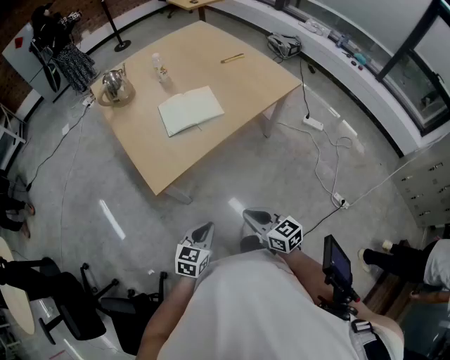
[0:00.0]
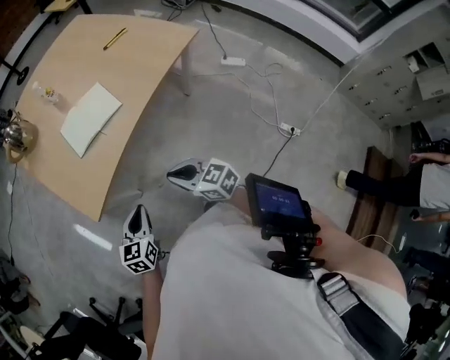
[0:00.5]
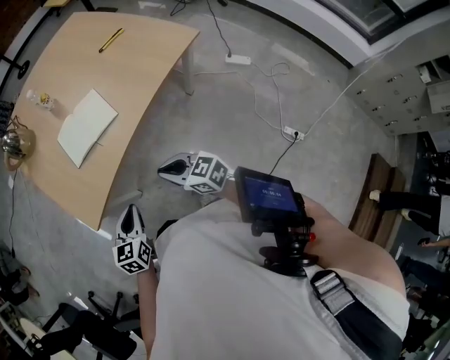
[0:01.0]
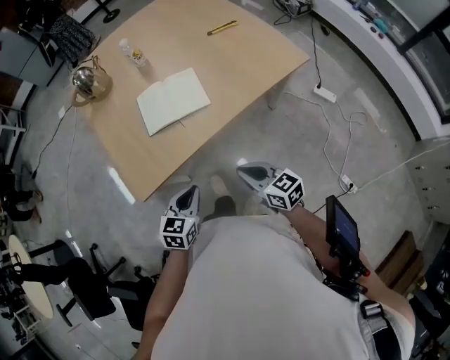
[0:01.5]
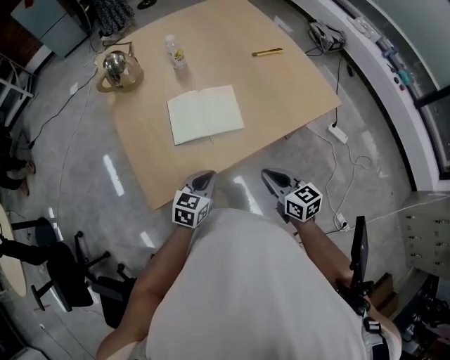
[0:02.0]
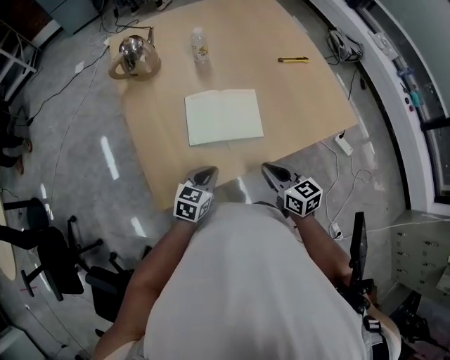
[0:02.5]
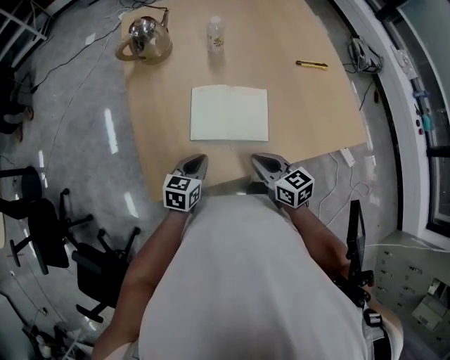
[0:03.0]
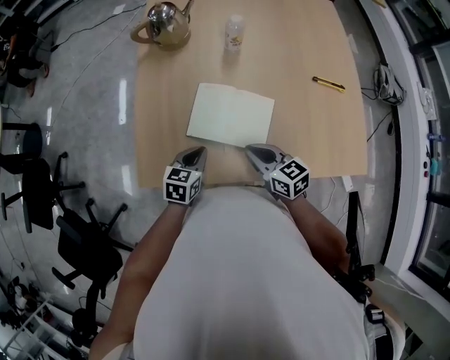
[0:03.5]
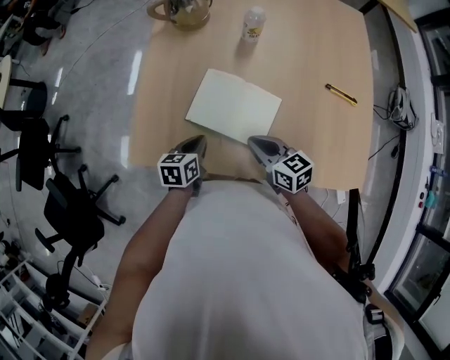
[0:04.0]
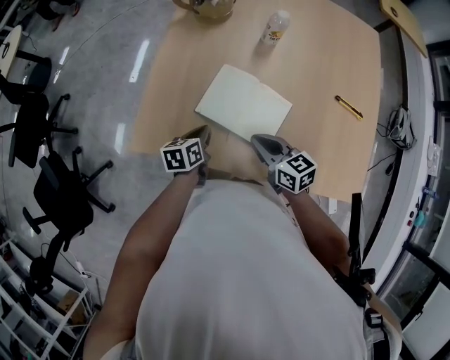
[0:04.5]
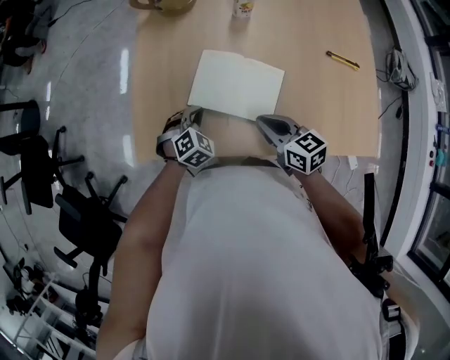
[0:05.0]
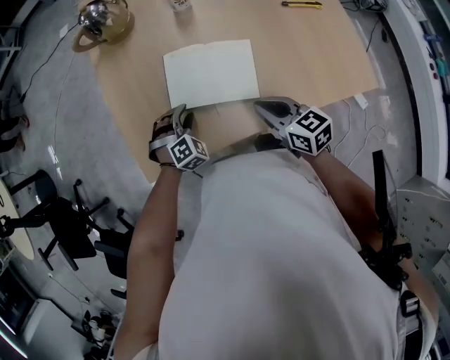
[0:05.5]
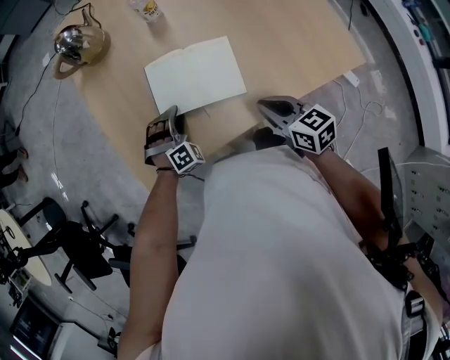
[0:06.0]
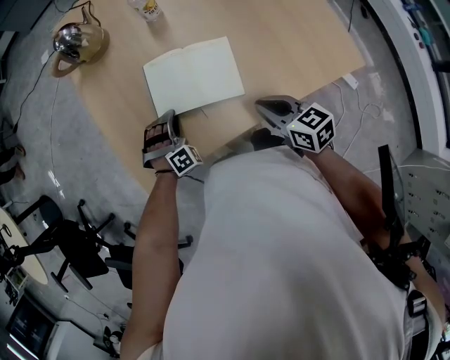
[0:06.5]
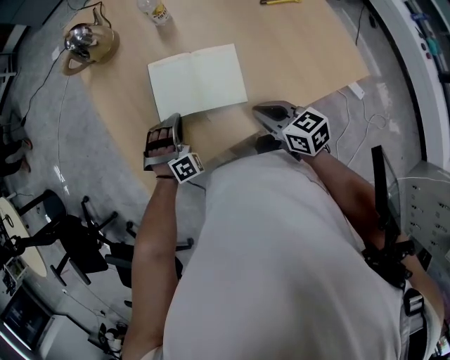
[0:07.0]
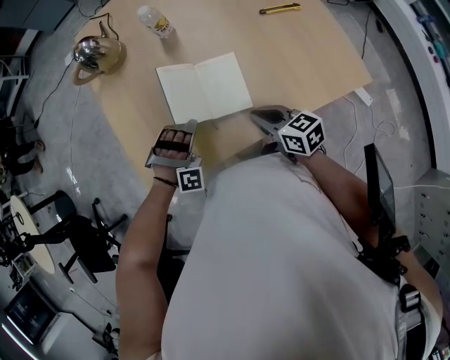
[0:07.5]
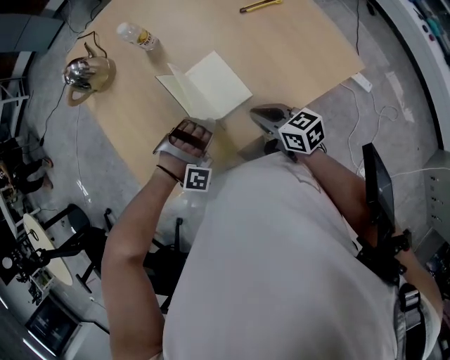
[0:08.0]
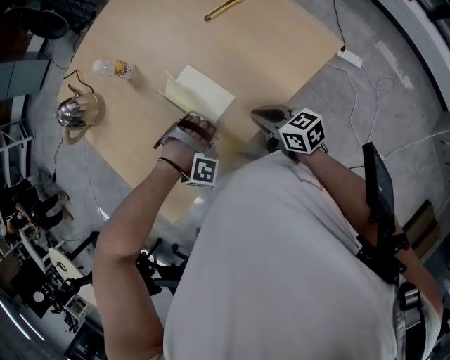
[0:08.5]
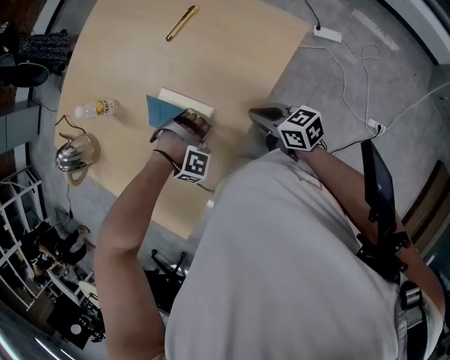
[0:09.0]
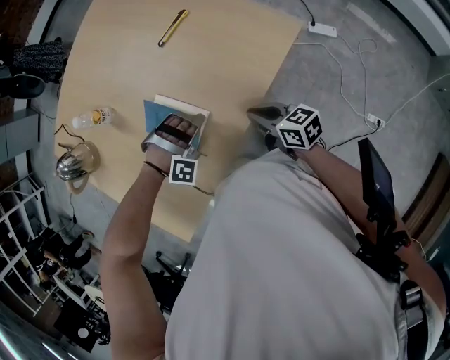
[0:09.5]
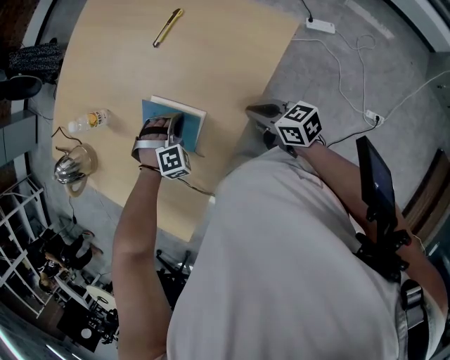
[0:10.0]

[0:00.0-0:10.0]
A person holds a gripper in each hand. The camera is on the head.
0:00.0 to 0:02.0: Both grippers move forward, about 30 cm.
0:02.0 to 0:04.0: The left gripper changes place by roughly 15 cm, and rotates around the line of its fingers by some 40 degrees, counterclockwise from behind; the right gripper ends up roughly 20 cm from where it was, and rotates some 40 degrees.
0:04.0 to 0:06.0: The left gripper is displaced downward by roughly 5 cm, rolls clockwise, seen from behind, by about 110 degrees, and opens; the right gripper heads backward, covering some 10 cm, and turns by some 30 degrees.
0:06.0 to 0:08.0: The left gripper is displaced to the right, upward and backward by some 15 cm, rotates around the line of its fingers by roughly 60 degrees, clockwise from behind, and closes.
0:08.0 to 0:10.0: The right gripper shifts roughly 15 cm to the right, and changes its angle by some 20 degrees; the left gripper travels forward, to the right and downward by some 15 cm, swivels about 30 degrees, and opens and closes again.

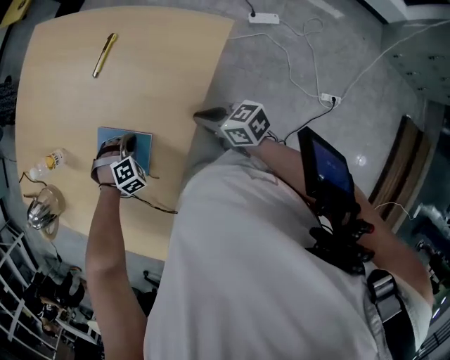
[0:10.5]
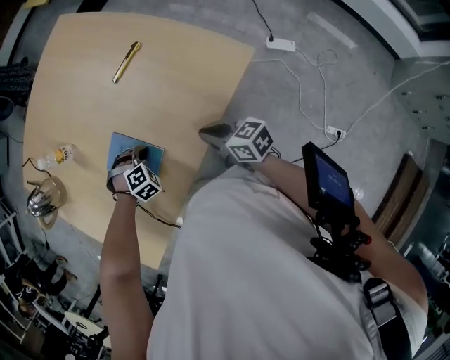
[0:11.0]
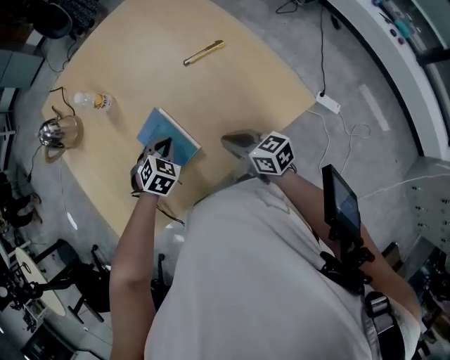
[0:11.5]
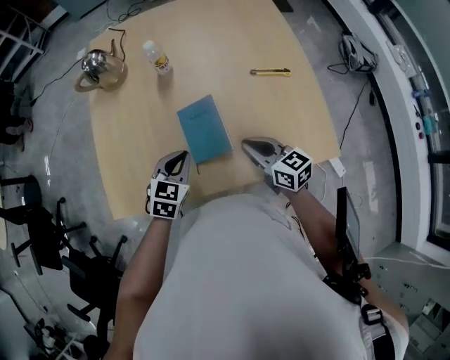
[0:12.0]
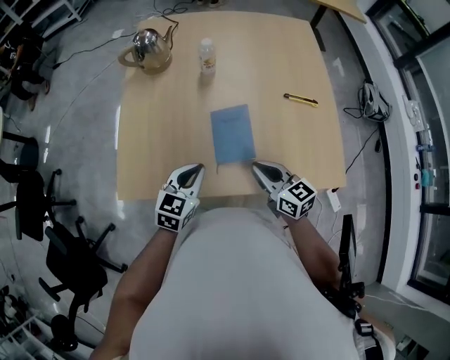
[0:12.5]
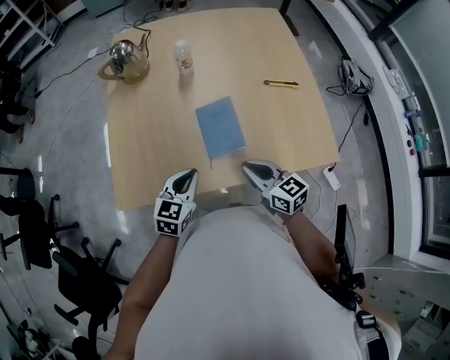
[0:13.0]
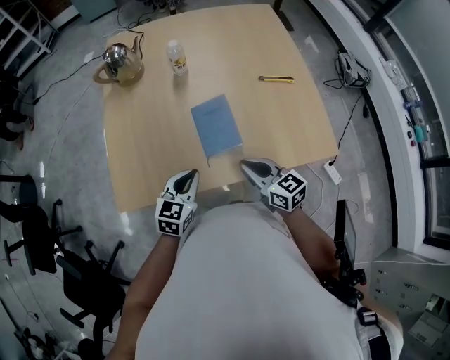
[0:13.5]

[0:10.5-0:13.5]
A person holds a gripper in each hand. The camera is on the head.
0:10.5 to 0:12.0: The left gripper travels upward, to the left and backward by roughly 15 cm, and rotates around the line of its fingers by about 100 degrees, counterclockwise from behind, while the right gripper shifts about 15 cm forward, upward and to the left, and turns by some 40 degrees.
0:12.0 to 0:13.5: The right gripper travels to the left and backward by about 10 cm; the left gripper travels backward by approximately 5 cm.

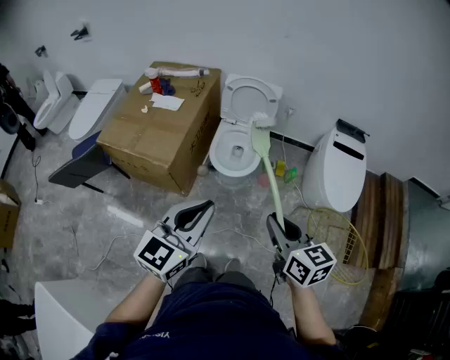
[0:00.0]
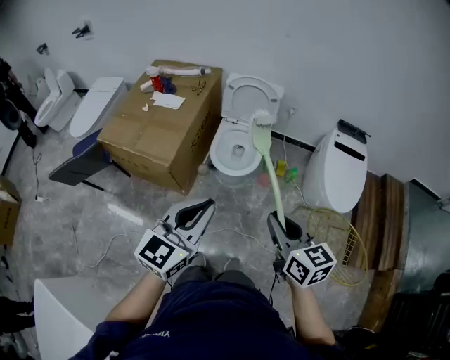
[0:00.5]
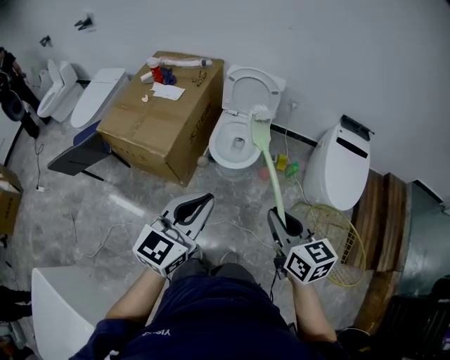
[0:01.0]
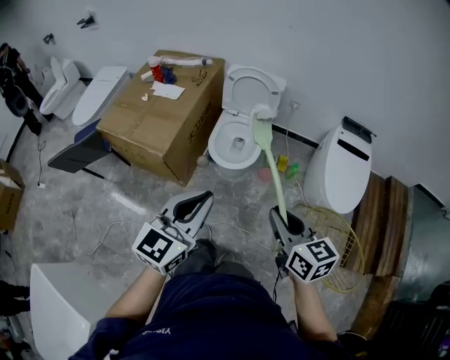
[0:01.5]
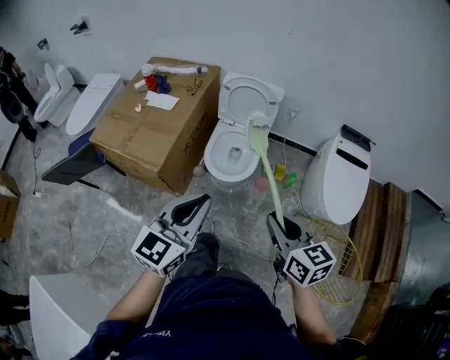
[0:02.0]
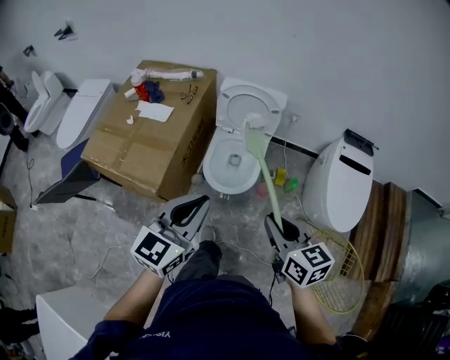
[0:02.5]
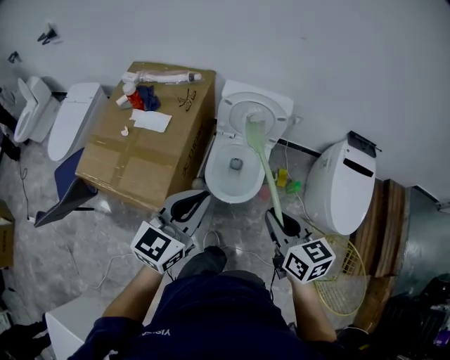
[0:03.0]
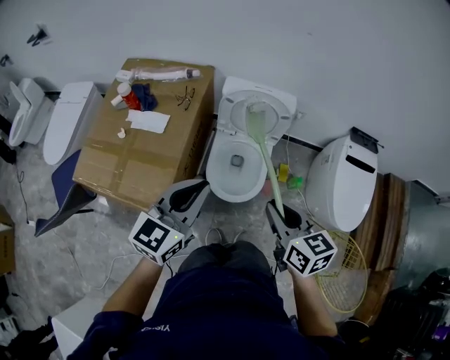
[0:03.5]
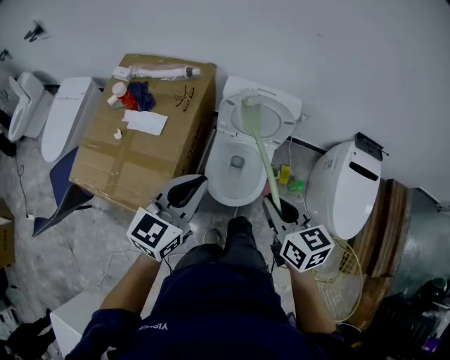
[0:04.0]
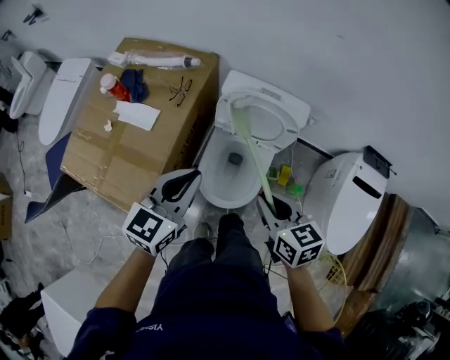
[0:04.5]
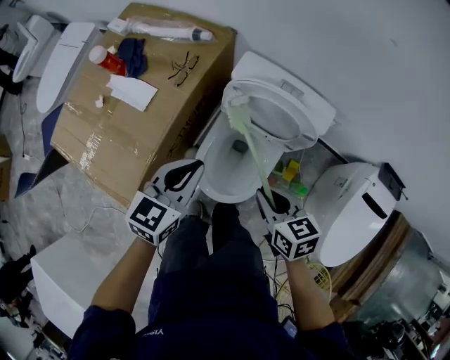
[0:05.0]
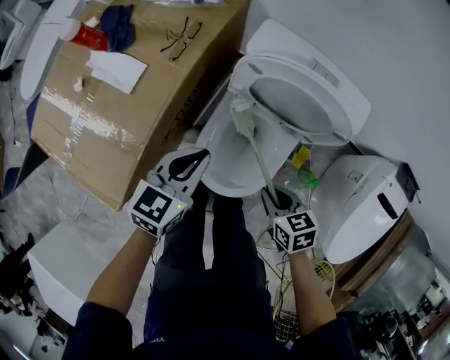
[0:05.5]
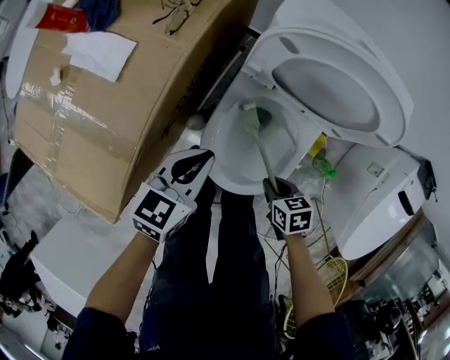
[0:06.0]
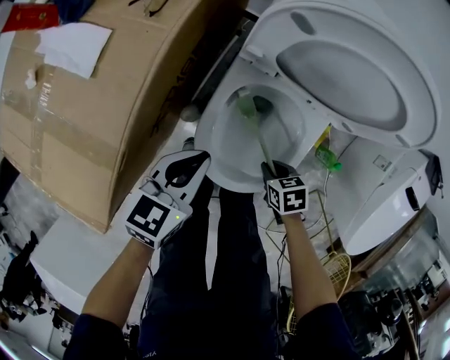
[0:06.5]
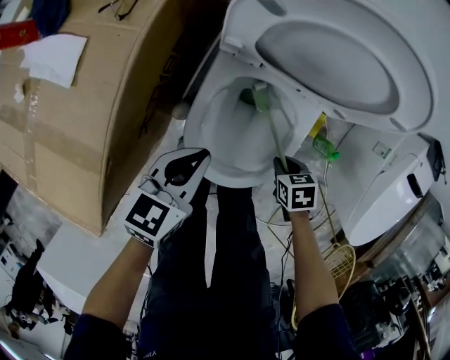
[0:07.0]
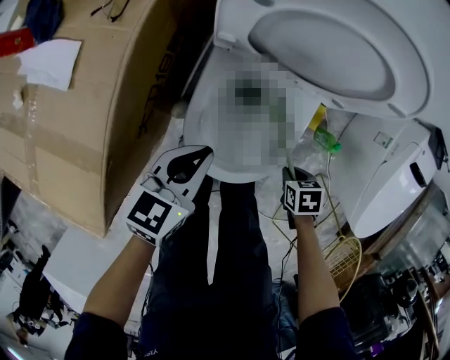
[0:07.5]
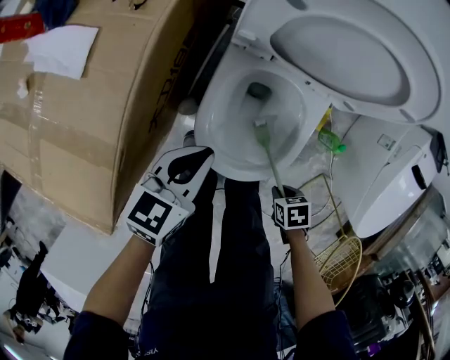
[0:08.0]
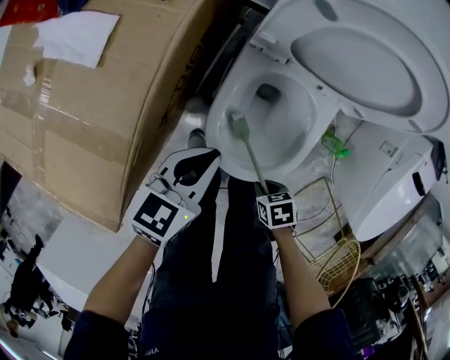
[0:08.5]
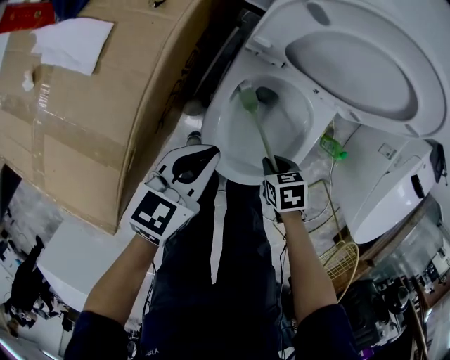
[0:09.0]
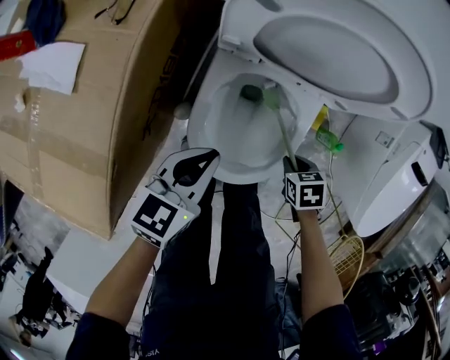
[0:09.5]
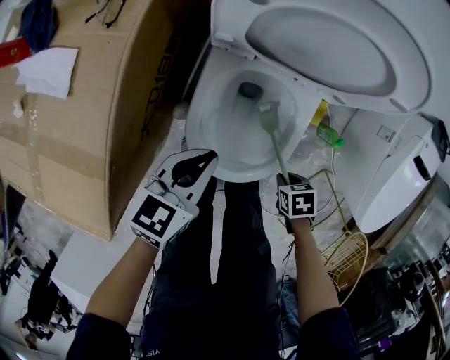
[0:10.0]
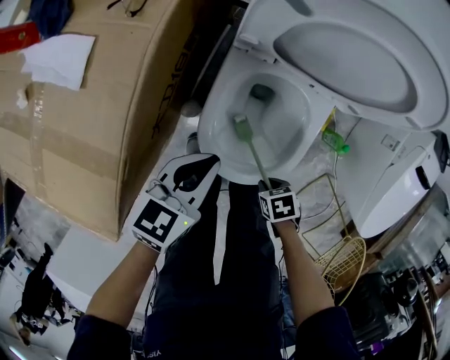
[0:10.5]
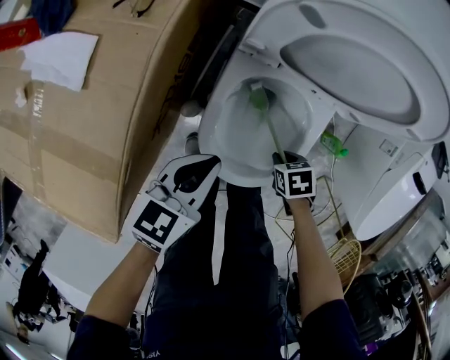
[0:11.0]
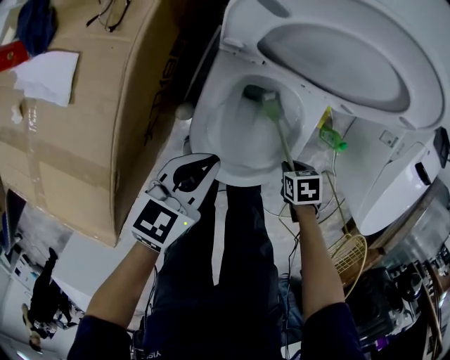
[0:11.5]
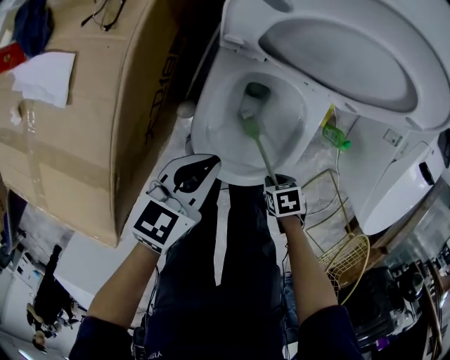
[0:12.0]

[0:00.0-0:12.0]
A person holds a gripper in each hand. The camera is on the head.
0:00.0 to 0:02.0: The grippers both shift forward by about 10 cm.
0:02.0 to 0:04.0: The two grippers go about 30 cm forward.
0:04.0 to 0:06.0: The two grippers go approximately 40 cm downward. The right gripper tips its fingers downward by roughly 30 degrees, while the left gripper swivels approximately 30 degrees.
0:06.0 to 0:08.0: The left gripper changes place by some 5 cm. Meanwhile the right gripper moves some 15 cm, and changes its angle by approximately 20 degrees.

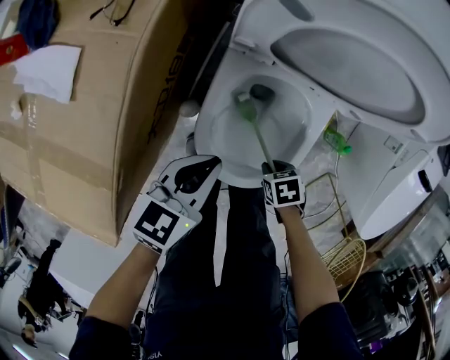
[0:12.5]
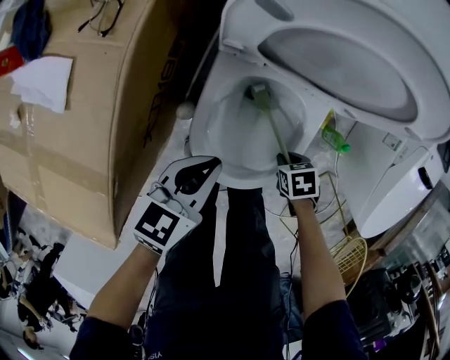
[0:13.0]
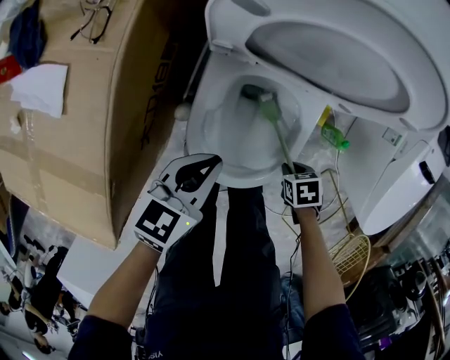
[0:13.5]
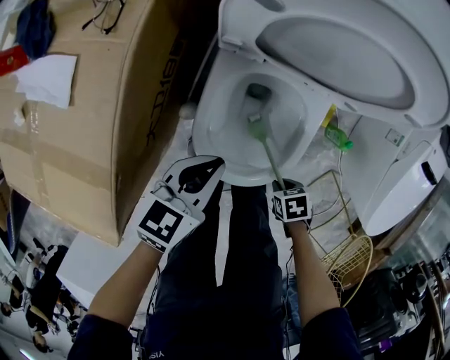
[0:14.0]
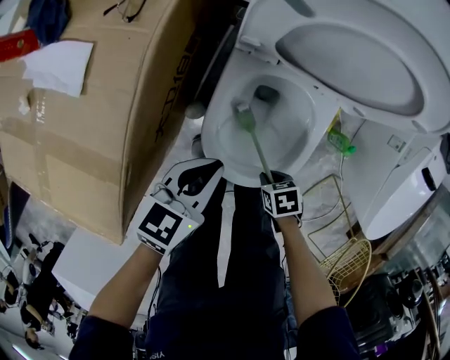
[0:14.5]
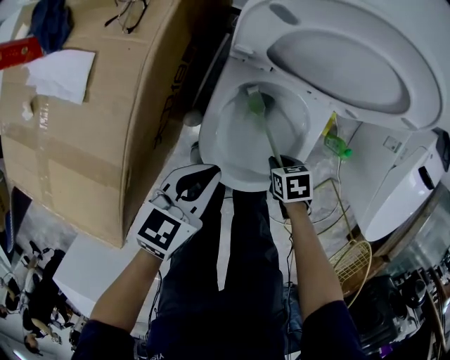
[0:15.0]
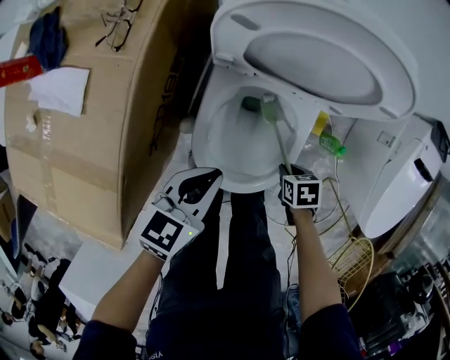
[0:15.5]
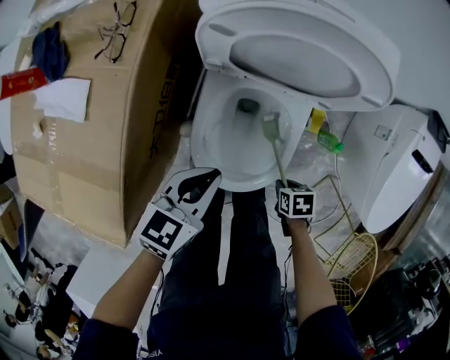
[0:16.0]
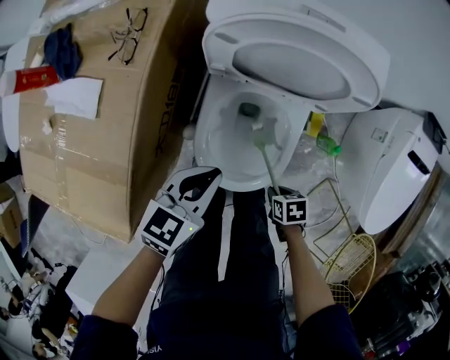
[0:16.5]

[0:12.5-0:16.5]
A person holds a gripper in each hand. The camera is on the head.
0:14.5 to 0:16.5: The left gripper heads upward, covering roughly 5 cm; the right gripper moves roughly 10 cm.
